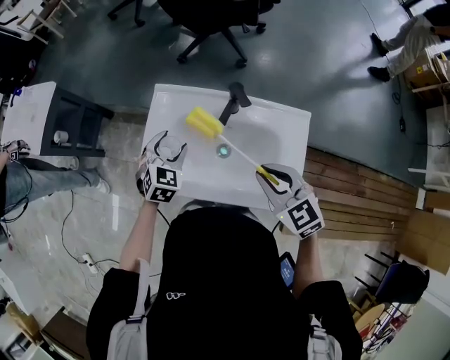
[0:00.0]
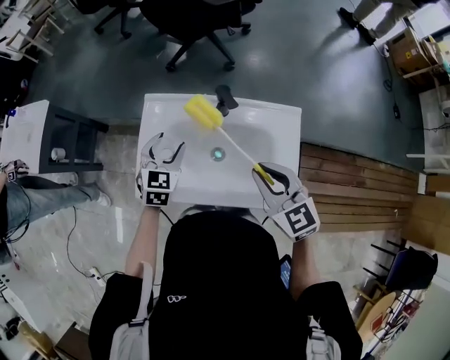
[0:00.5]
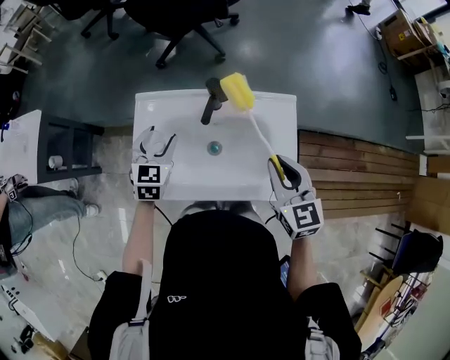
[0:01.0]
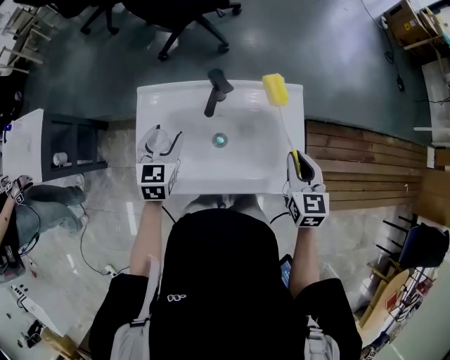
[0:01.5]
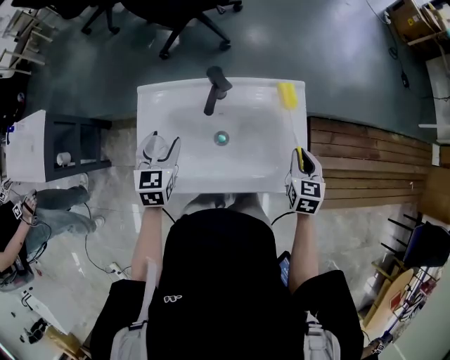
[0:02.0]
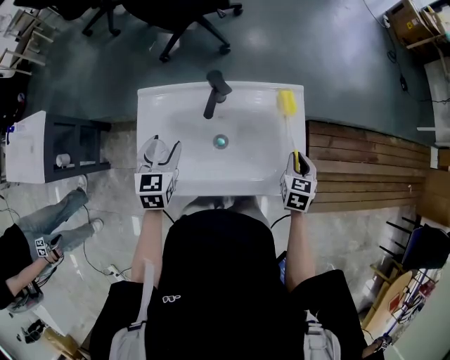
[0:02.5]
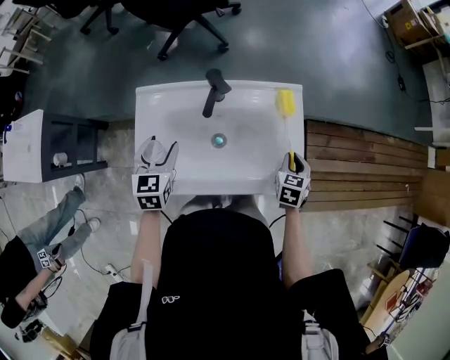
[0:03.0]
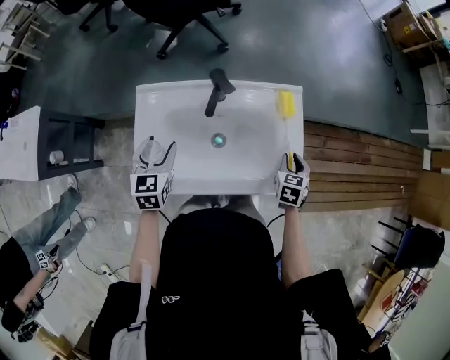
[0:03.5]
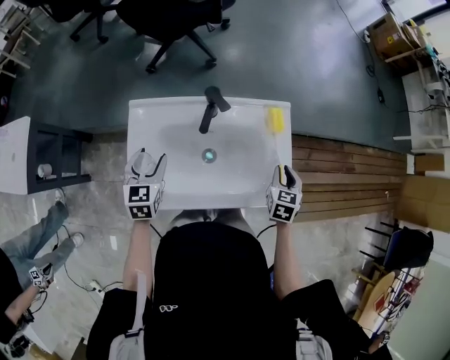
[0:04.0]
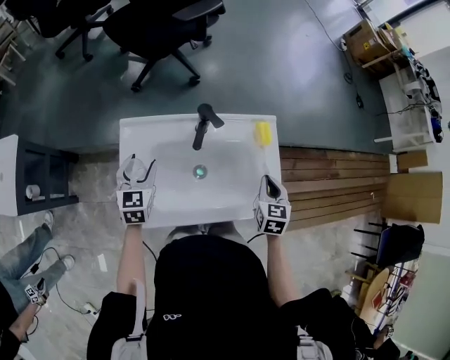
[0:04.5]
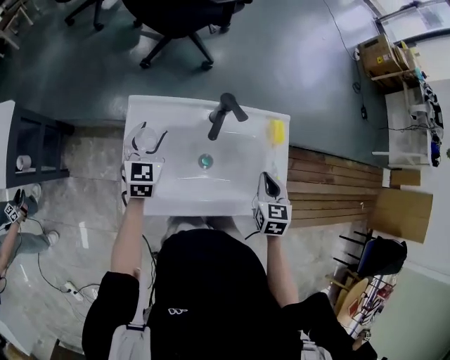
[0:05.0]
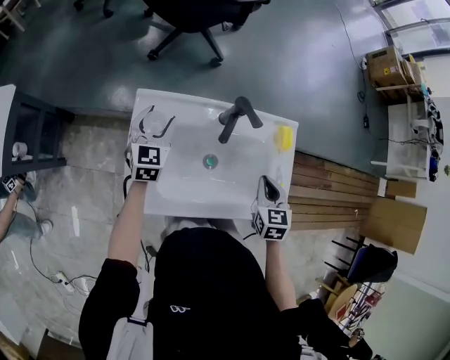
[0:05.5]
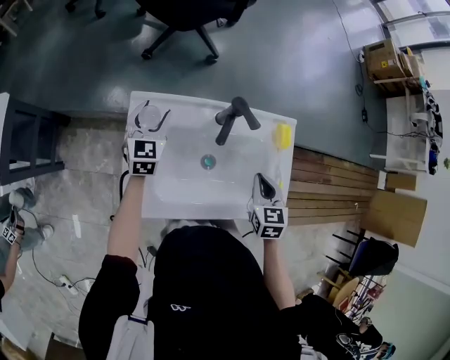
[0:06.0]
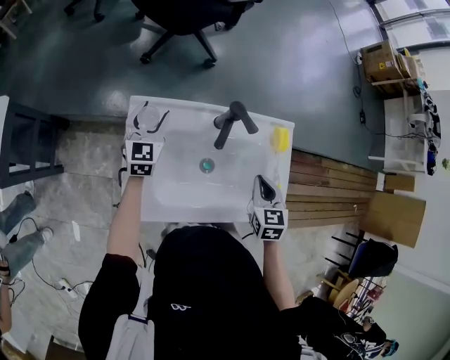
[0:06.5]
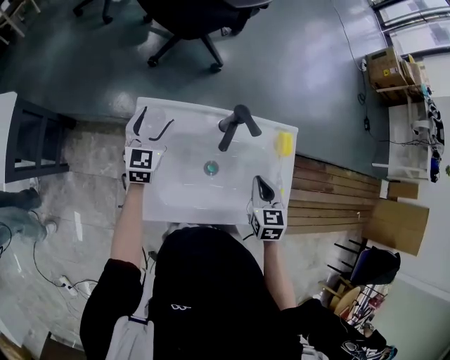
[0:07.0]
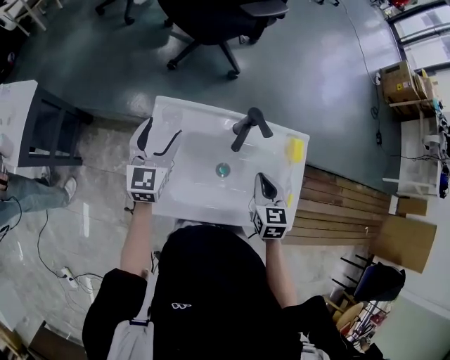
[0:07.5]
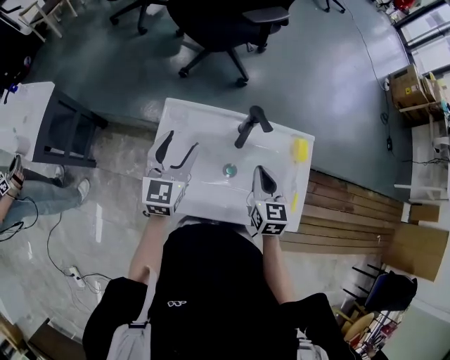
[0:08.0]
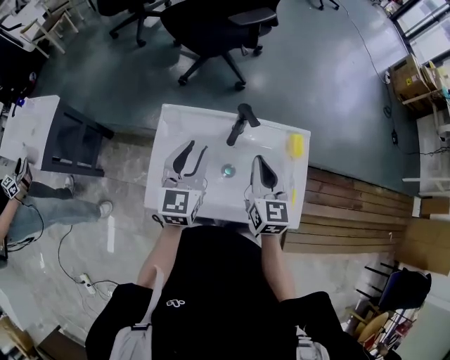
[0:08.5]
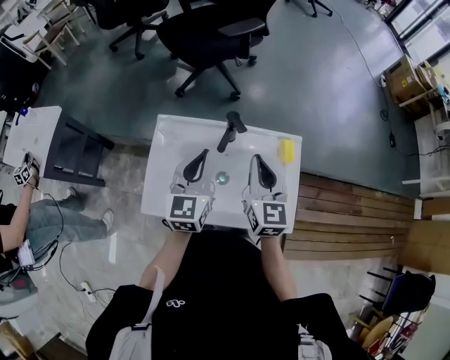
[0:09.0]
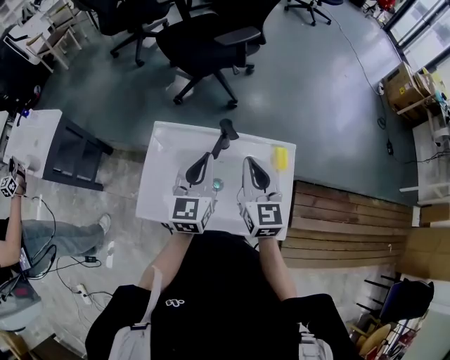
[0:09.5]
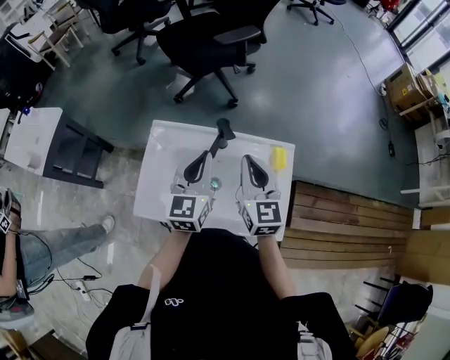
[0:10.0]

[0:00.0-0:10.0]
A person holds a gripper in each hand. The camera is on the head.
0:00.0 to 0:02.0: The right gripper moves approximately 20 cm, and swivels some 50 degrees.
0:02.0 to 0:04.0: There are only small adjustments of the grippers.
0:04.0 to 0:06.0: The right gripper moves to the left, approximately 10 cm, and closes its fingers. Meanwhile the left gripper shifts approximately 15 cm forward.
0:06.0 to 0:08.0: The right gripper shifts some 10 cm to the left; the left gripper is displaced upward and backward by approximately 15 cm.
0:08.0 to 0:10.0: The left gripper heads to the right and upward, covering approximately 15 cm, and closes; the right gripper shifts about 15 cm upward.

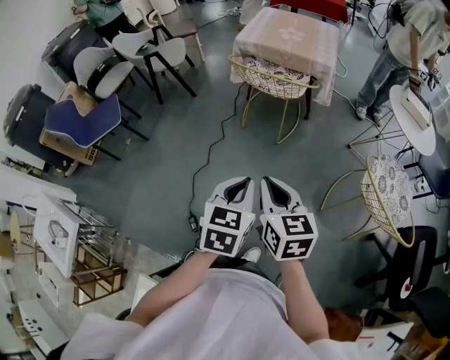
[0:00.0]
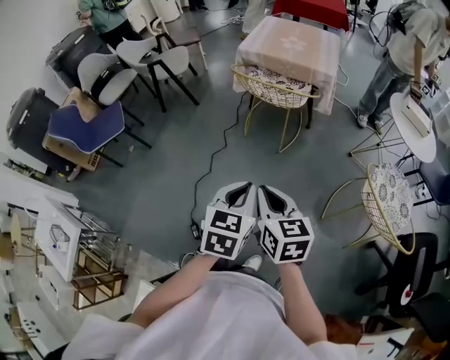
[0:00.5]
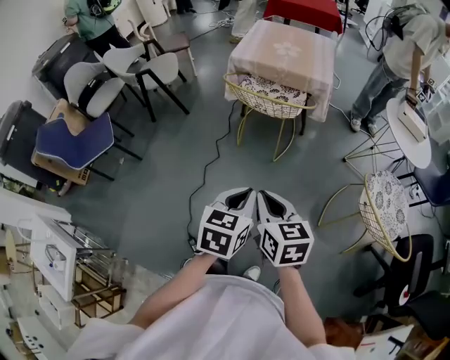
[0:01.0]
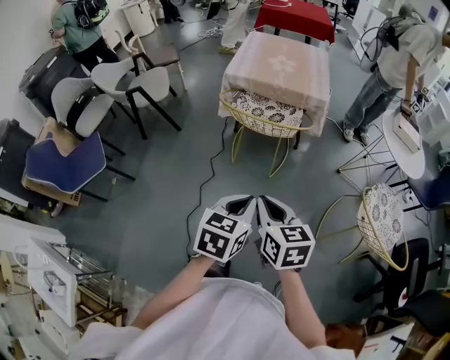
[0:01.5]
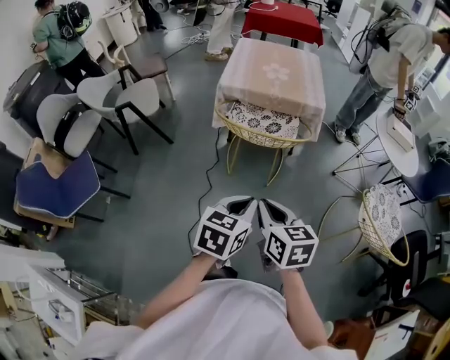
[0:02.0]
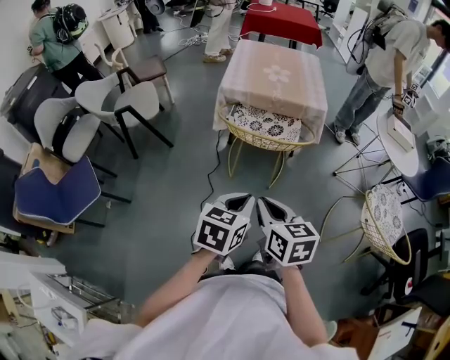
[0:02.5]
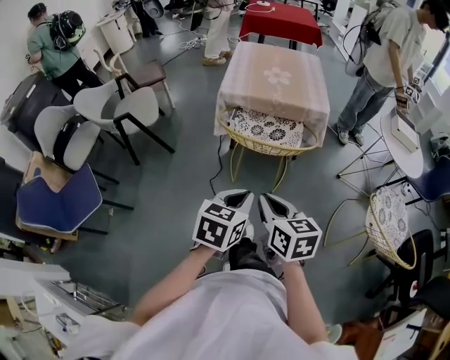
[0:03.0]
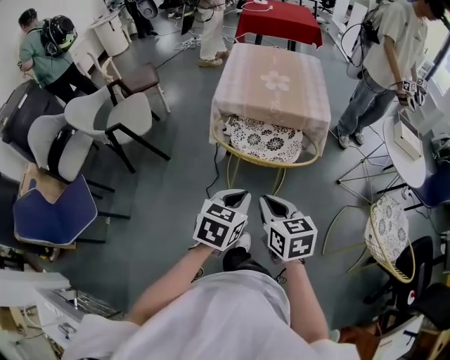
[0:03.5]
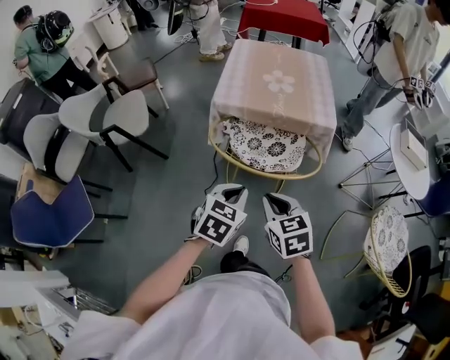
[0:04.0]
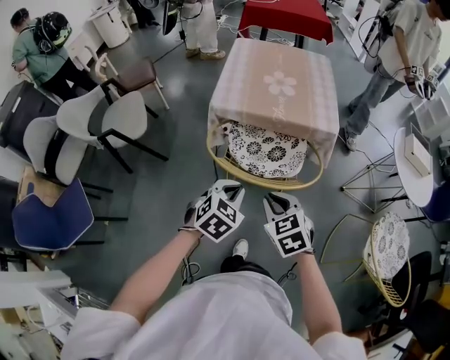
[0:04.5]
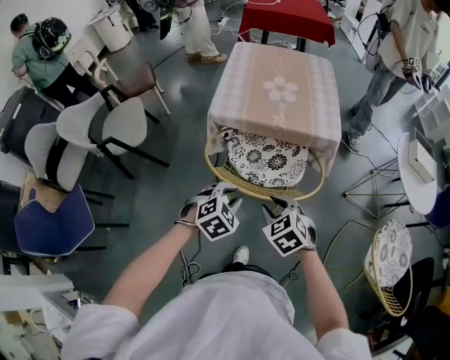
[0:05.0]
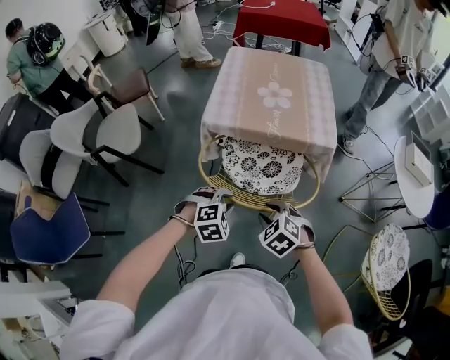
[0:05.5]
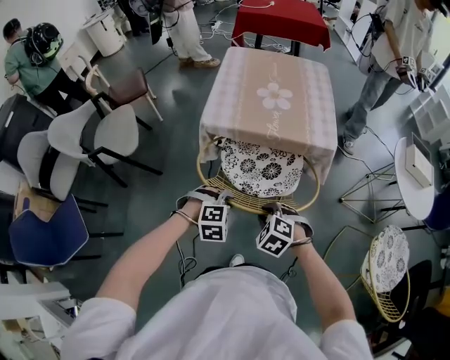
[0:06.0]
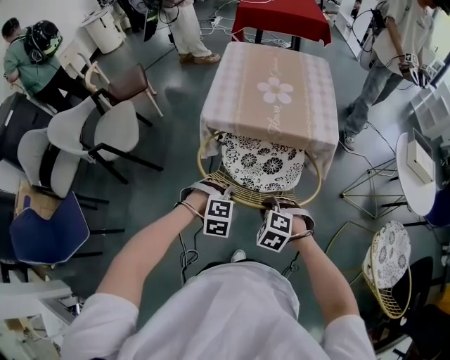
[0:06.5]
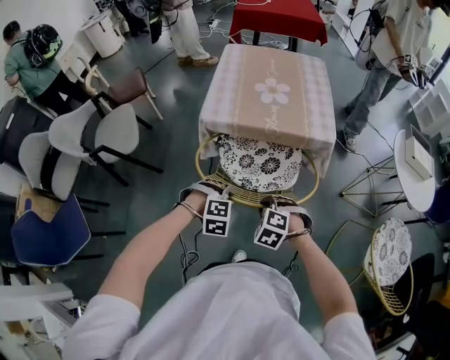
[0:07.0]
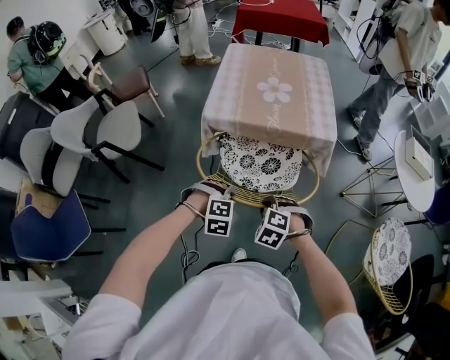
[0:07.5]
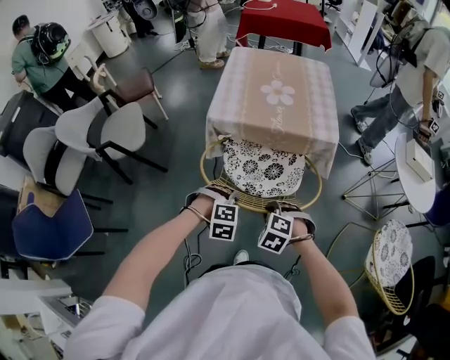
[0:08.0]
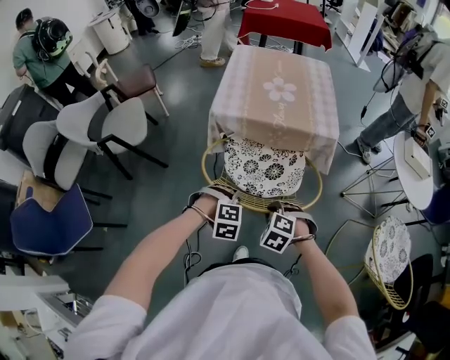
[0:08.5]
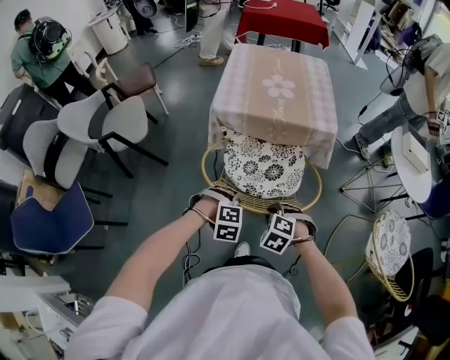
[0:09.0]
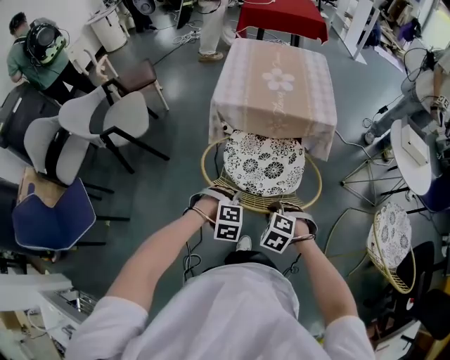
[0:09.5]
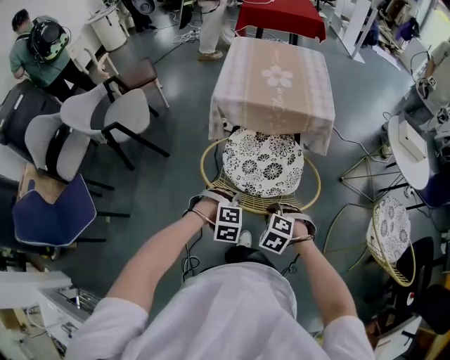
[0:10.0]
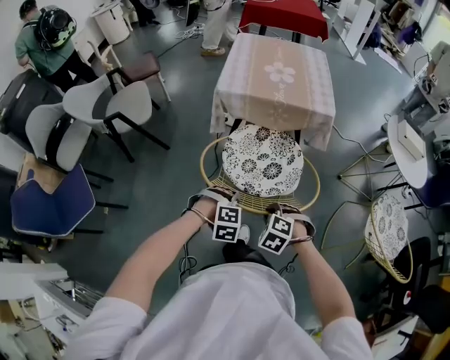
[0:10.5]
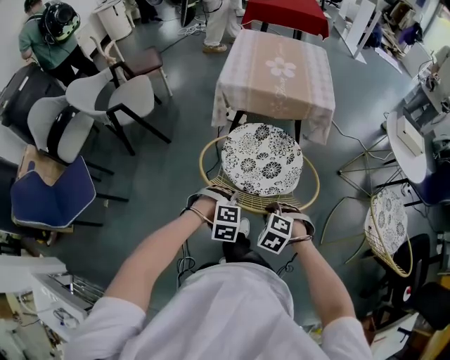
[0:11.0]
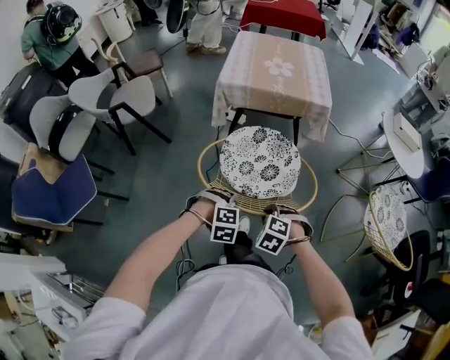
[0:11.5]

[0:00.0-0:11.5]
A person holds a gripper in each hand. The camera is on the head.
0:00.0 to 0:02.0: Both grippers travel together forward and to the left, approximately 25 cm. The left gripper turns by about 20 degrees.
0:02.0 to 0:04.0: Both grippers move forward, approximately 25 cm. The right gripper swivels roughly 20 degrees.
0:04.0 to 0:06.0: Both grippers move downward and forward, about 15 cm. The right gripper twists approximately 40 degrees counterclockwise, seen from behind. The left gripper twists approximately 60 degrees clockwise, seen from behind, and opens.
0:06.0 to 0:07.5: The grippers stay close to where they were, moving slightly.
0:07.5 to 0:09.5: The grippers both shift backward by about 10 cm.
0:09.5 to 0:11.5: The two grippers go roughly 15 cm backward.

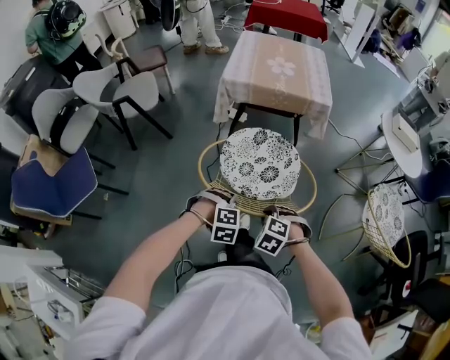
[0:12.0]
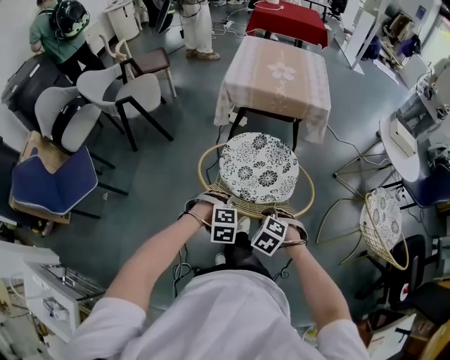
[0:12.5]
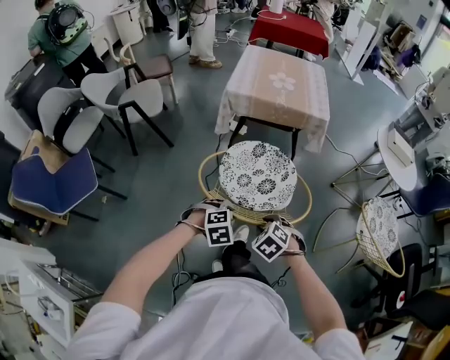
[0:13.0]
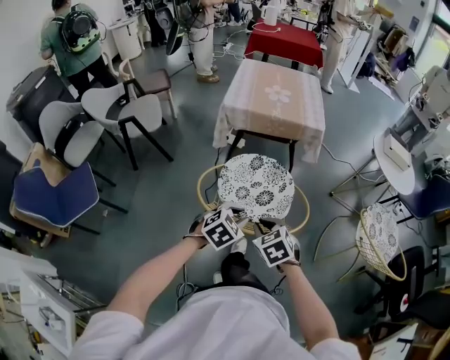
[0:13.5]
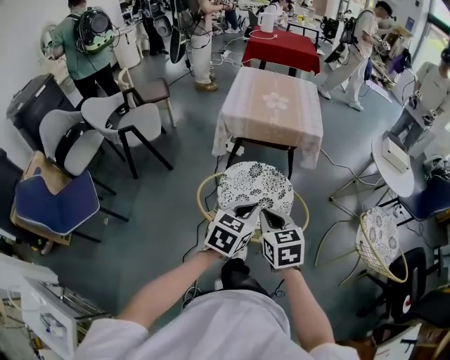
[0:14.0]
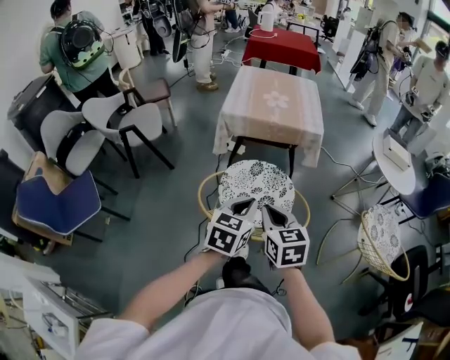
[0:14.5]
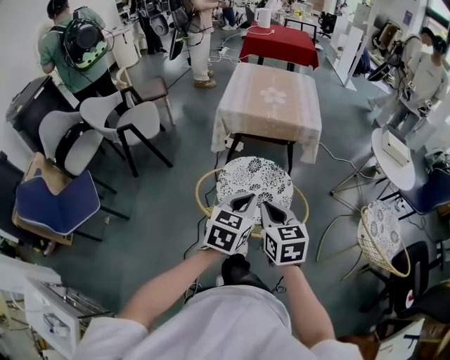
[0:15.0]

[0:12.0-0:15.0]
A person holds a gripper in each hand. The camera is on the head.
0:12.0 to 0:13.5: Both grippers travel together upward, roughly 10 cm. The right gripper swivels about 40 degrees. The left gripper twists about 40 degrees counterclockwise, seen from behind.
0:13.5 to 0:15.0: The two grippers go approximately 10 cm upward. The right gripper changes its angle by roughly 30 degrees. The left gripper turns by roughly 40 degrees, and closes its fingers.

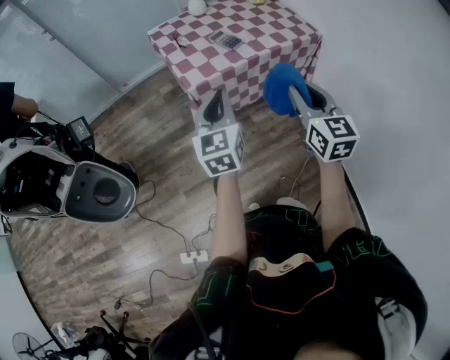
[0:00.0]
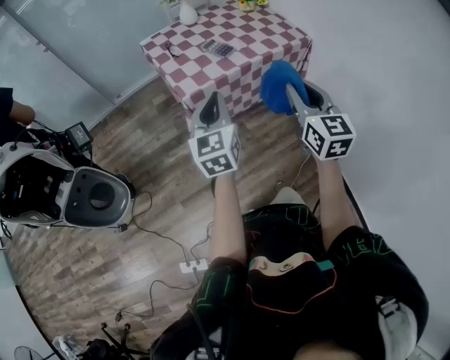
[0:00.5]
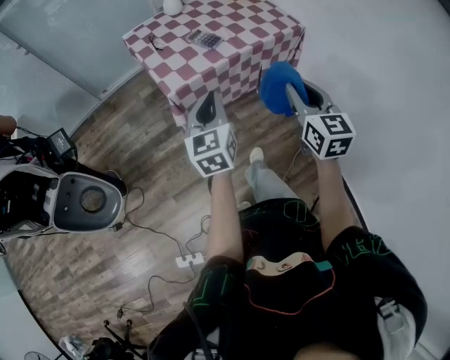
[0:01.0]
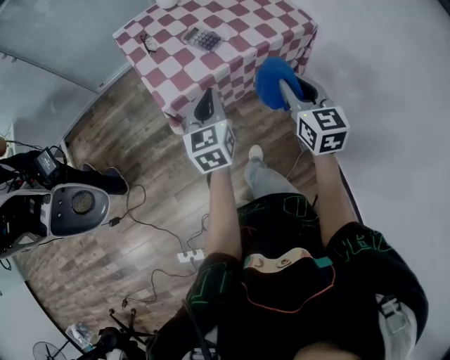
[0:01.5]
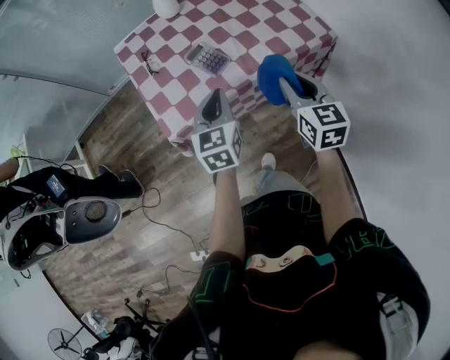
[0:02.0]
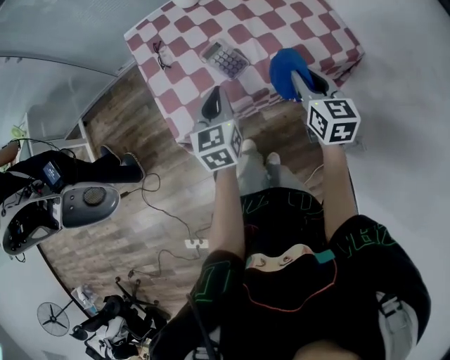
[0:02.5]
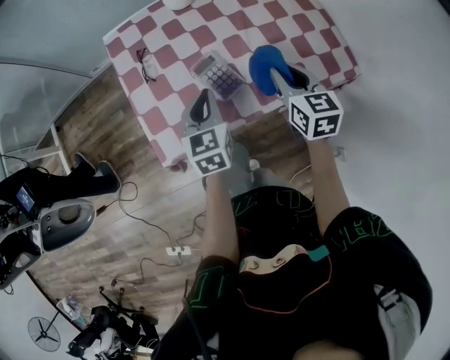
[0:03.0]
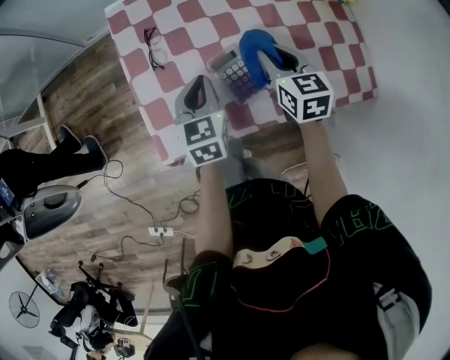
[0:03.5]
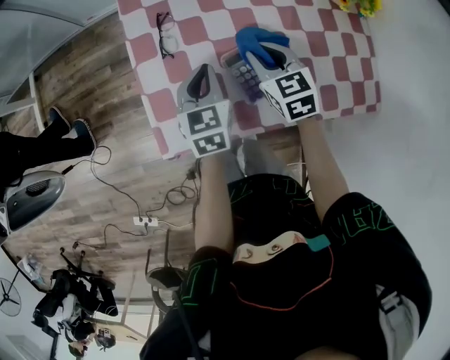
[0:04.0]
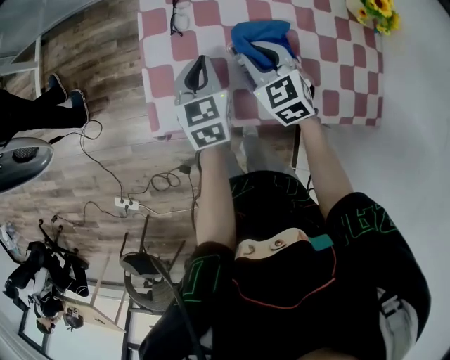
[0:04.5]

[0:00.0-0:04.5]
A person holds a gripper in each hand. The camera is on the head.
0:00.0 to 0:02.0: Both grippers travel together forward, about 25 cm.
0:02.0 to 0:04.5: The left gripper ends up approximately 25 cm from where it was, and changes its angle by approximately 30 degrees; the right gripper moves some 35 cm, and turns by about 60 degrees.
